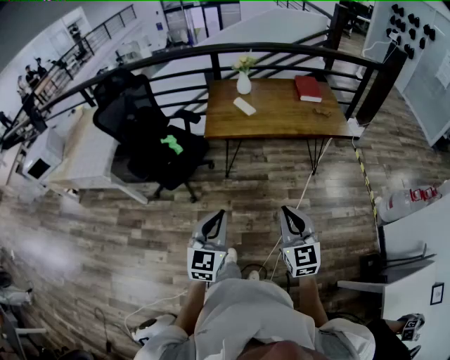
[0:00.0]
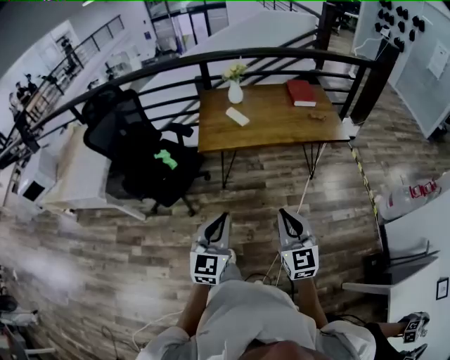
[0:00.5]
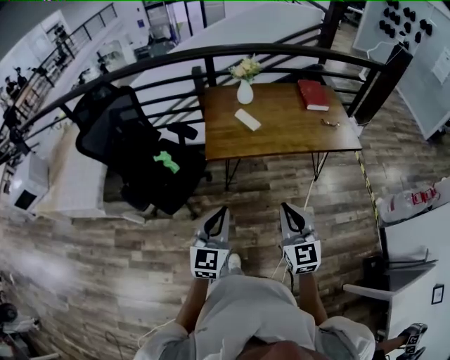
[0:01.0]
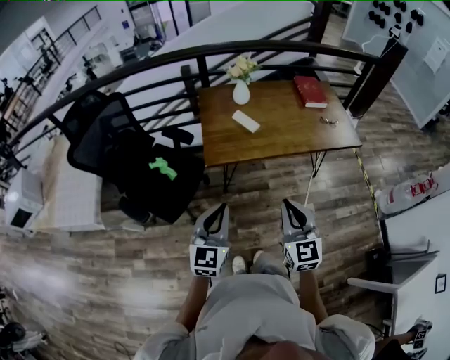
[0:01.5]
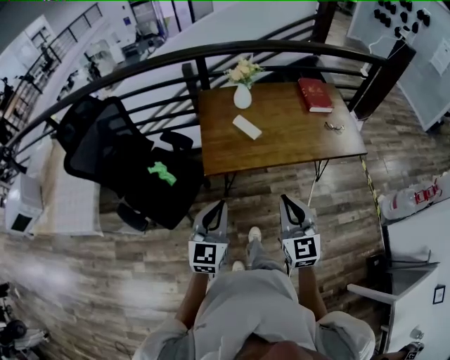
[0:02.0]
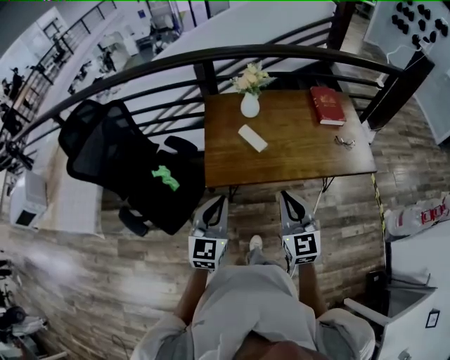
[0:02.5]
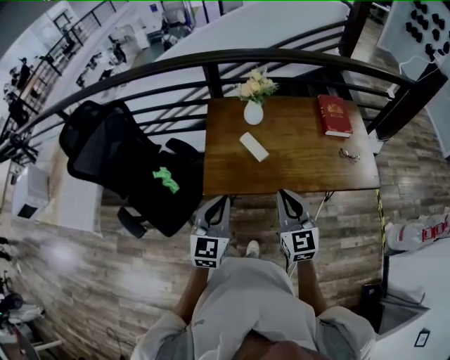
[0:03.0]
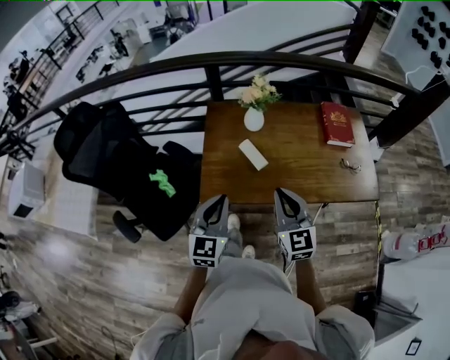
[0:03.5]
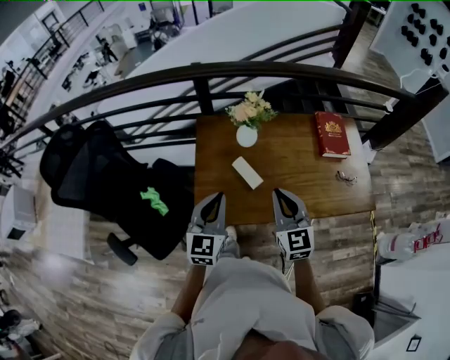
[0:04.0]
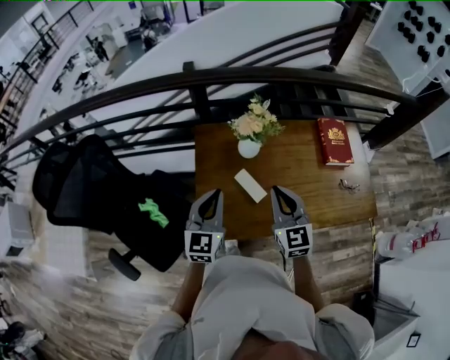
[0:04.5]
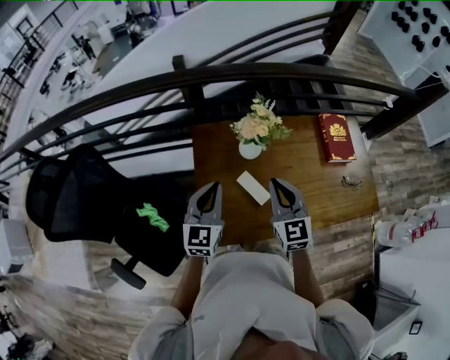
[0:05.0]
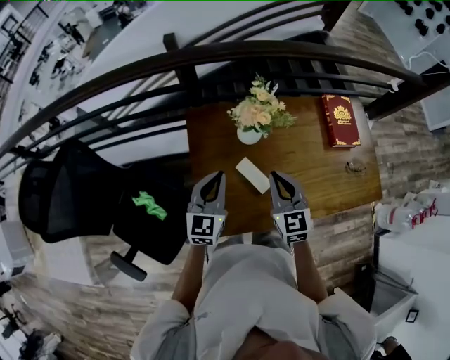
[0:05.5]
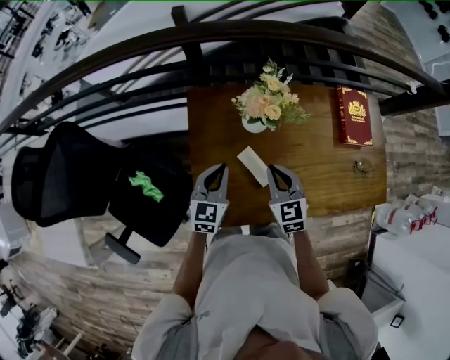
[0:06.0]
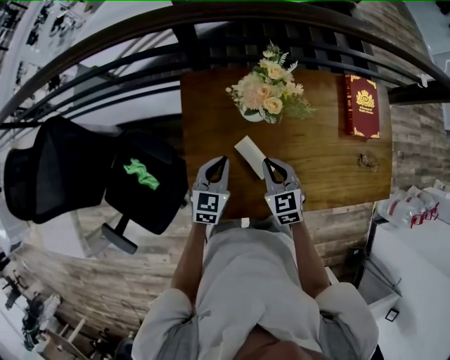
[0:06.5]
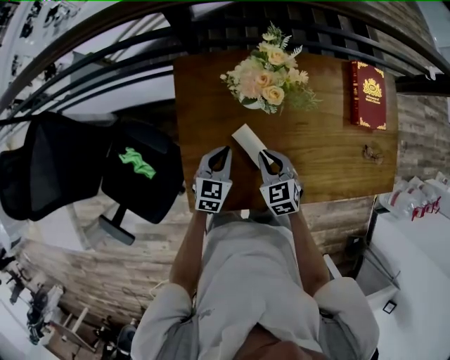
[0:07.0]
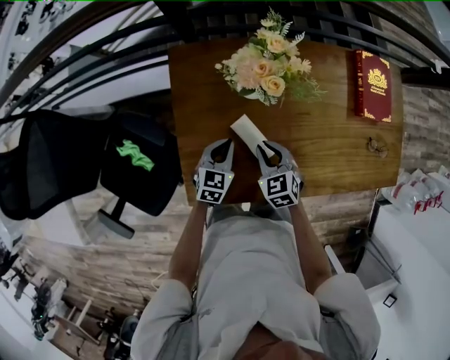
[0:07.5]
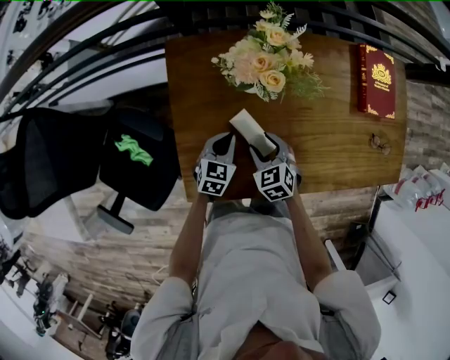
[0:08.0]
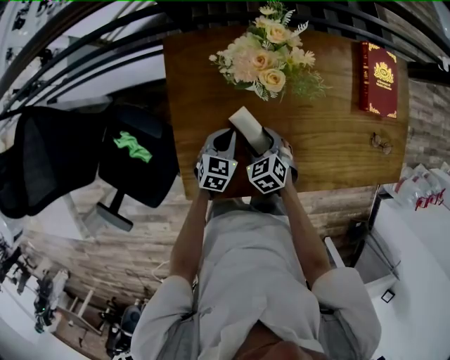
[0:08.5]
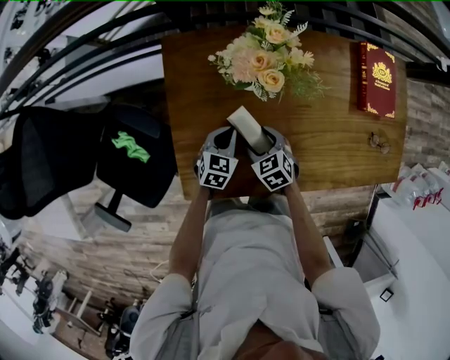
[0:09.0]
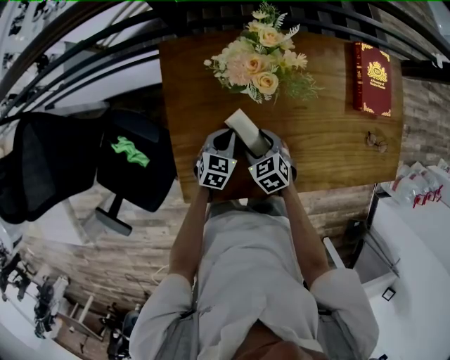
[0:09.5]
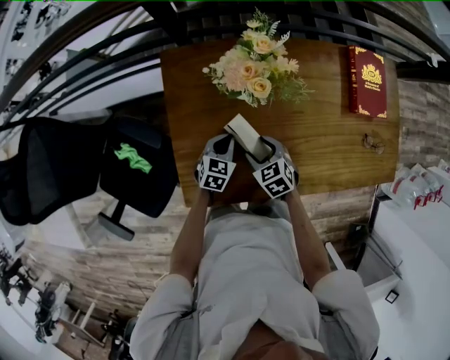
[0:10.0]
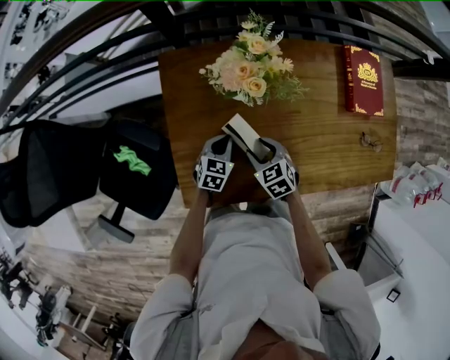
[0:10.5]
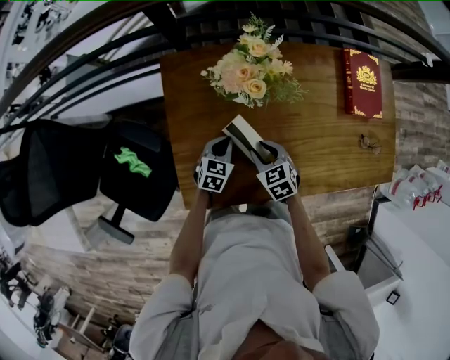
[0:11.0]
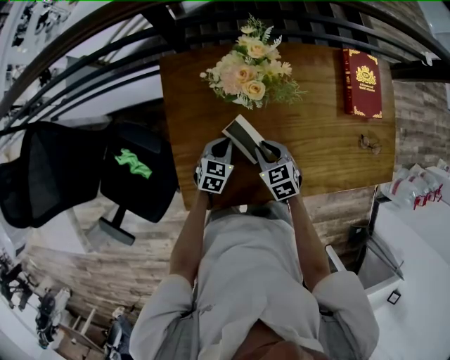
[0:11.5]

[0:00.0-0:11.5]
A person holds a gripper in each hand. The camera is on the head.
0:00.0 to 0:02.0: The grippers both shift forward by about 30 cm.
0:02.0 to 0:04.0: The grippers both shift forward by roughly 30 cm.
0:04.0 to 0:06.0: Both grippers move forward and downward, roughly 25 cm. The right gripper changes its angle by approximately 20 degrees.
0:06.0 to 0:07.5: The two grippers go roughly 15 cm downward.
0:07.5 to 0:09.5: The right gripper shifts roughly 5 cm downward, and opens its fingers.
0:09.5 to 0:11.5: The right gripper moves about 5 cm, and closes.

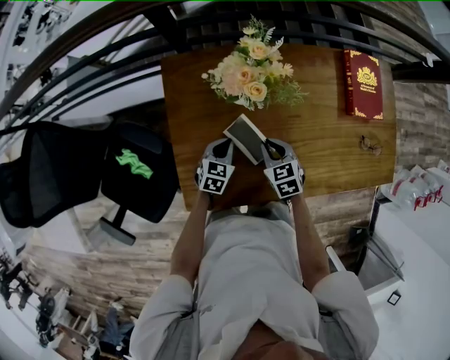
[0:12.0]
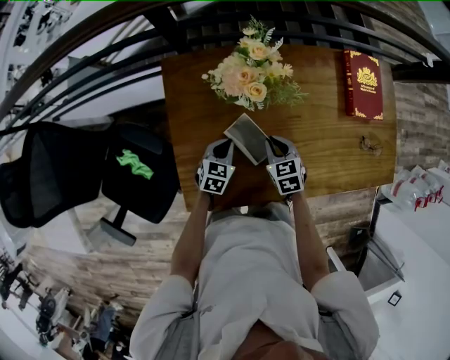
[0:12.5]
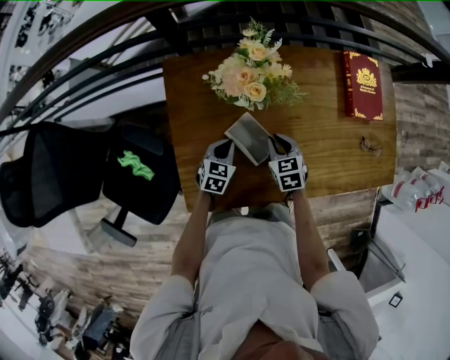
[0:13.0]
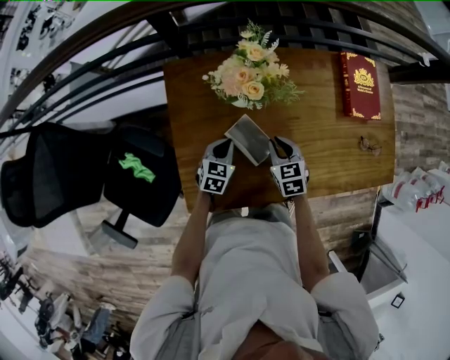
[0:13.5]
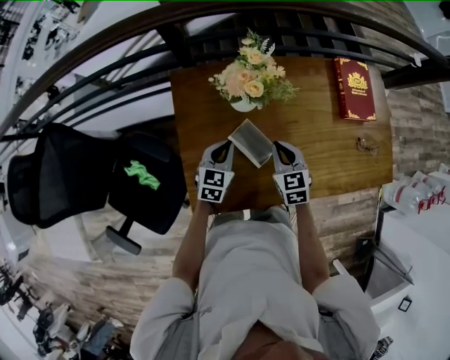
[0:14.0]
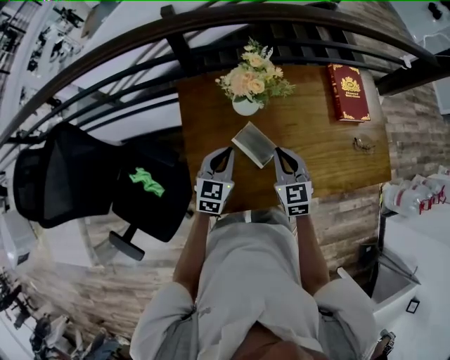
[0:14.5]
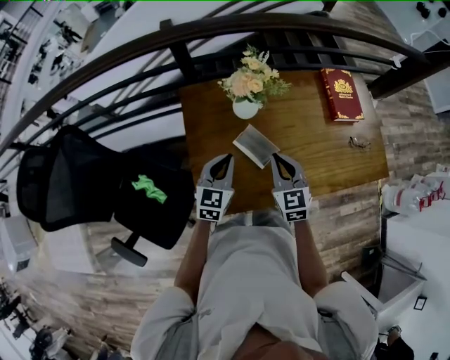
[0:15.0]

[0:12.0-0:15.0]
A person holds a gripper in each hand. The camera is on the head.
0:12.0 to 0:13.5: The grippers move only a little.
0:13.5 to 0:15.0: The right gripper is displaced upward and backward by some 15 cm, and changes its angle by about 20 degrees. Meanwhile the left gripper goes about 15 cm upward, and rotates approximately 20 degrees.

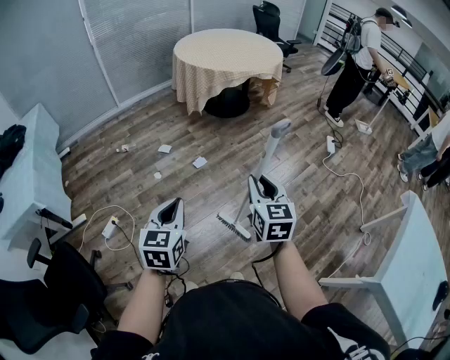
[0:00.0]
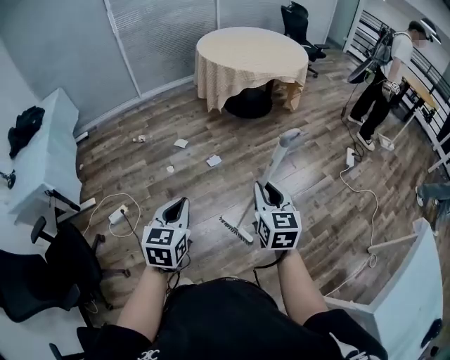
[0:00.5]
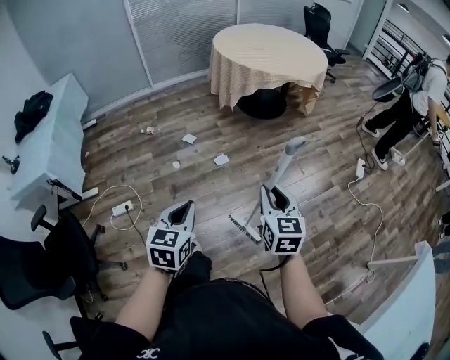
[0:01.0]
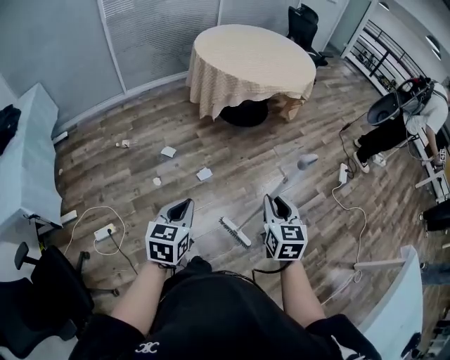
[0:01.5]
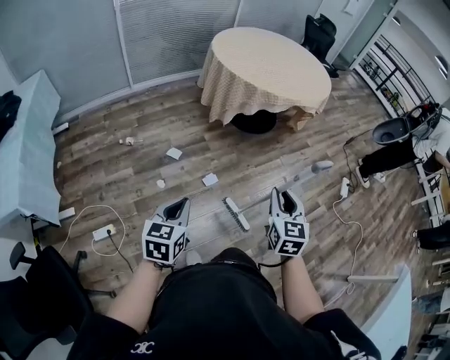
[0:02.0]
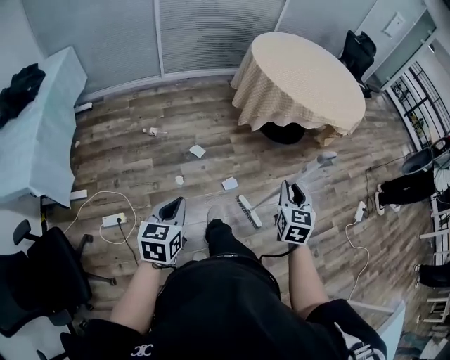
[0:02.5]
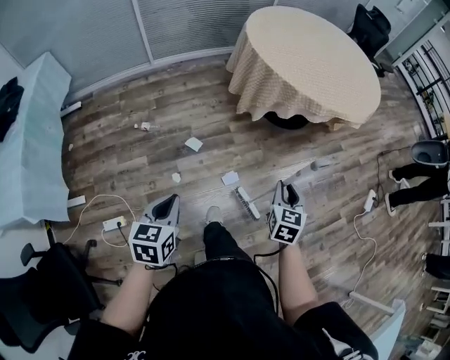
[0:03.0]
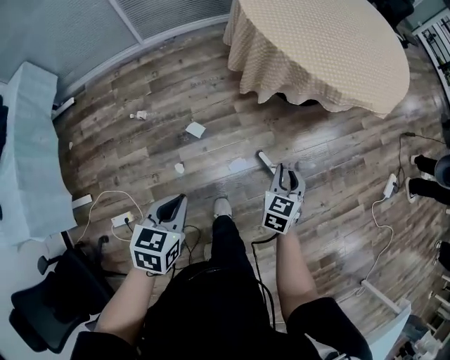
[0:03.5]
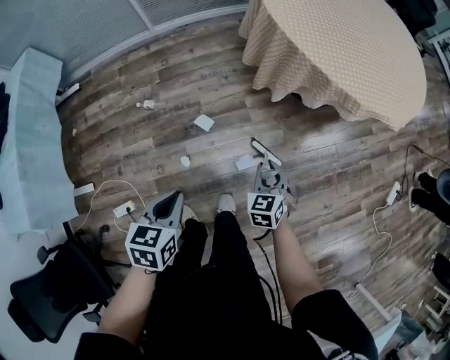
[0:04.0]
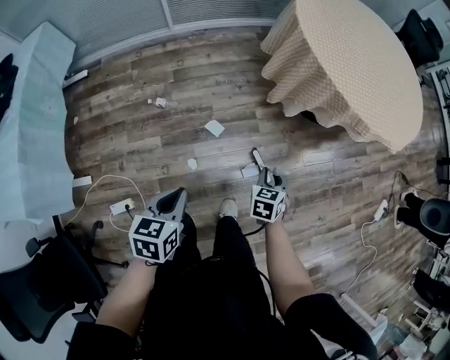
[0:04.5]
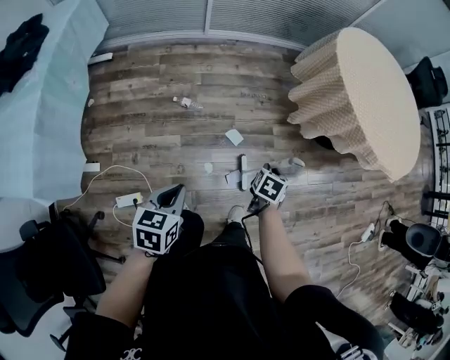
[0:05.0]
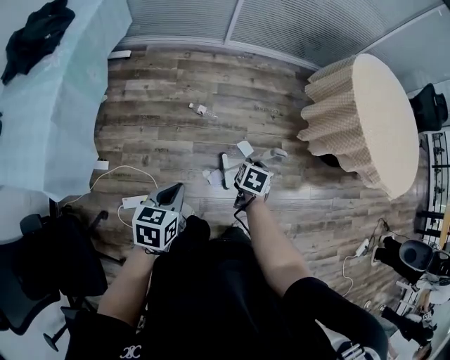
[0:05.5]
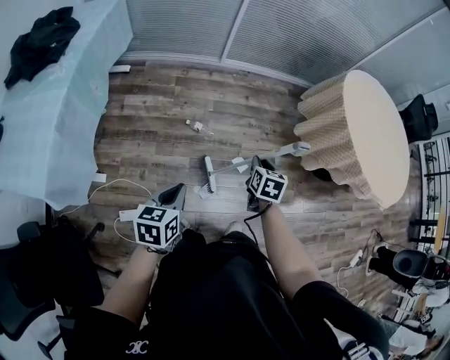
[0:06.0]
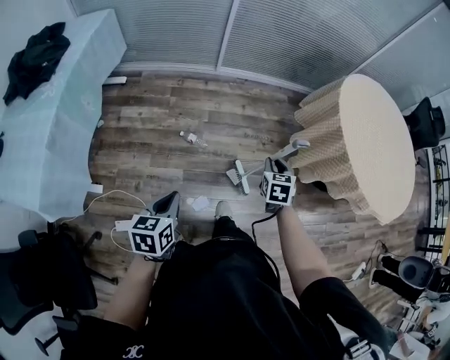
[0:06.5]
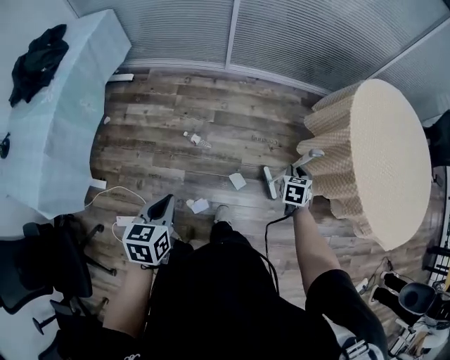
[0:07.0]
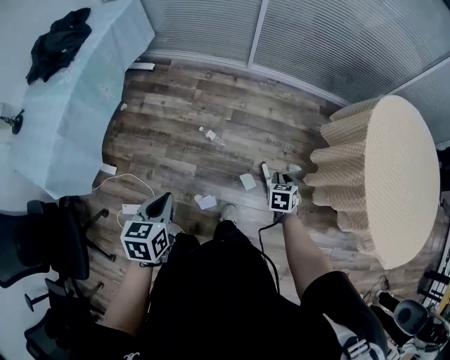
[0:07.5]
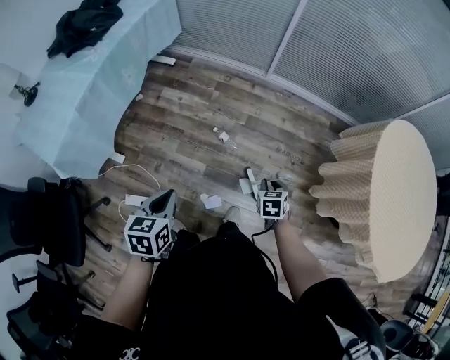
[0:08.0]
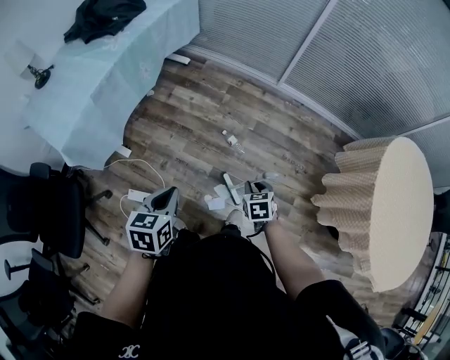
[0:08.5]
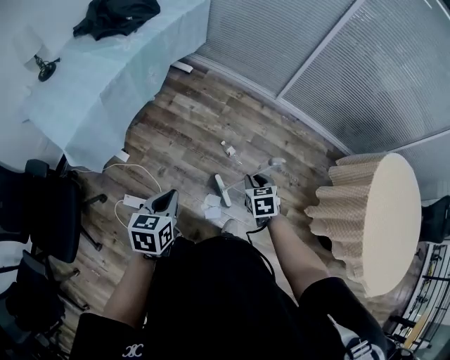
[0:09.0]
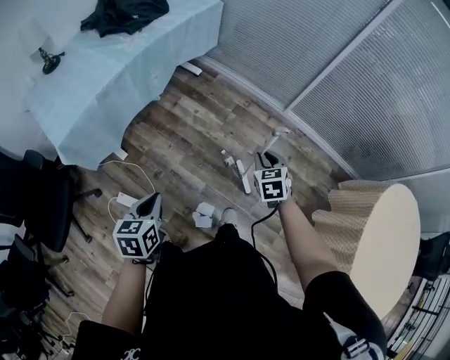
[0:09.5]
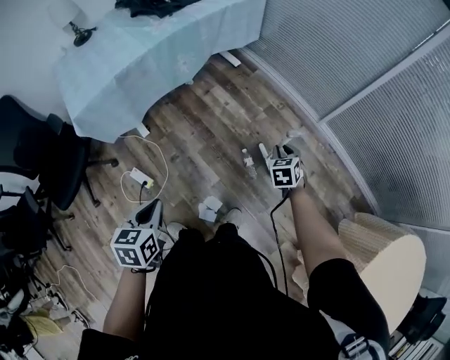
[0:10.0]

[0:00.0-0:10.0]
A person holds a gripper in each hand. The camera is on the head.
0:00.0 to 0:02.0: The grippers both shift forward by about 30 cm.
0:02.0 to 0:04.0: The right gripper moves forward, downward and to the left, about 50 cm, and rotates about 30 degrees, while the left gripper is displaced forward and downward by about 30 cm, and swivels roughly 20 degrees.
0:04.0 to 0:06.0: The pair of grippers is taken to the left, roughly 40 cm. The left gripper rotates about 20 degrees.
0:06.0 to 0:08.0: The left gripper is displaced forward by about 5 cm, and rotates approximately 20 degrees, while the right gripper shifts some 15 cm forward and downward, travels to the right and back again, roughly 25 cm each way, and swivels roughly 30 degrees.
0:08.0 to 0:10.0: The right gripper goes upward and returns, about 10 cm each way, and changes its angle by roughly 40 degrees, while the left gripper changes its angle by roughly 30 degrees.

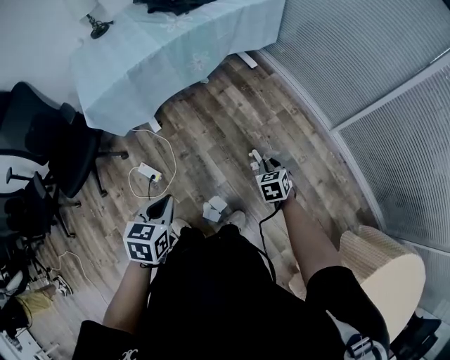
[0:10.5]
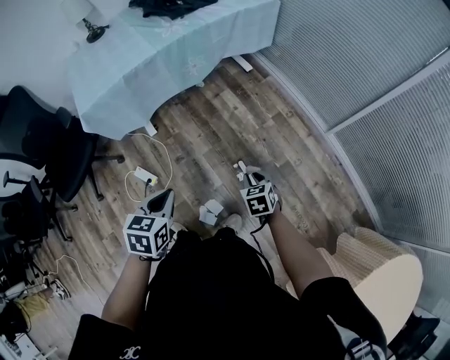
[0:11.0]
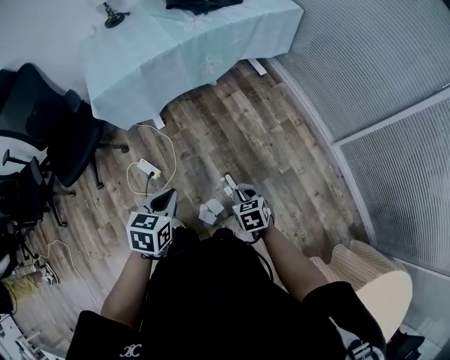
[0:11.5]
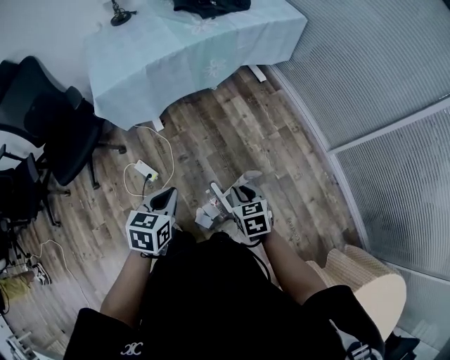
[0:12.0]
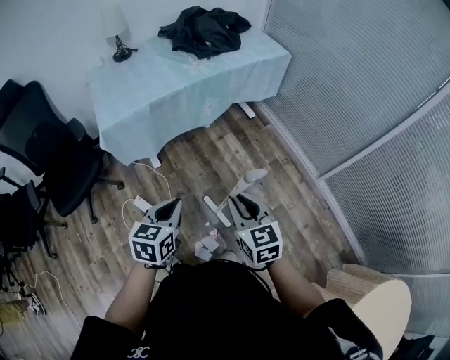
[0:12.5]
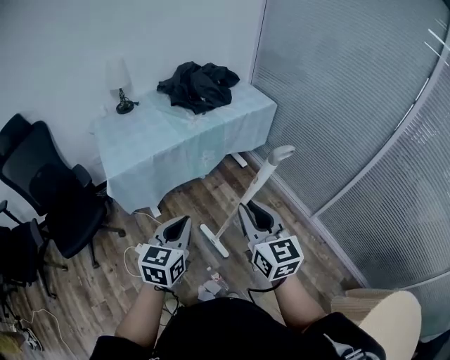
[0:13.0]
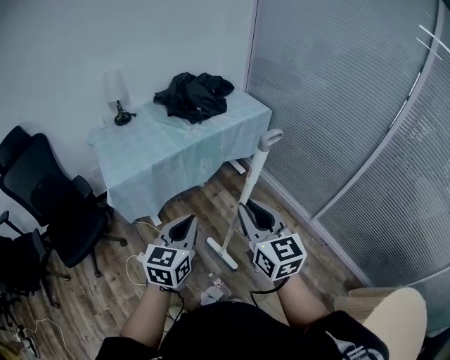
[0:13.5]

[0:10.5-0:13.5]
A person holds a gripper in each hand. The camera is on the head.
0:10.5 to 0:12.0: The right gripper goes approximately 15 cm to the left and upward.
0:12.0 to 0:13.5: The left gripper goes roughly 20 cm upward, and tips its fingers upward by roughly 30 degrees, while the right gripper shifts some 35 cm upward, and points its fingers some 40 degrees further upward.
